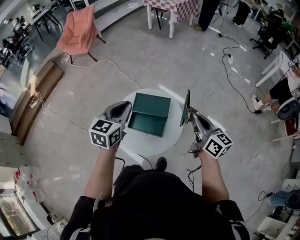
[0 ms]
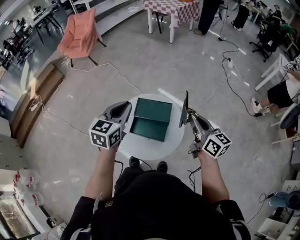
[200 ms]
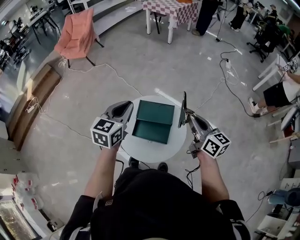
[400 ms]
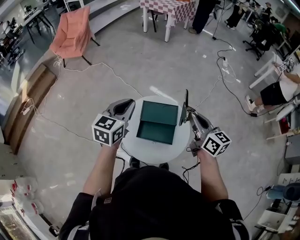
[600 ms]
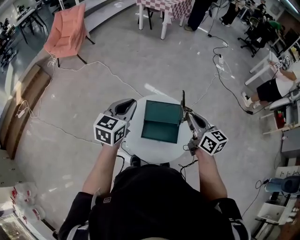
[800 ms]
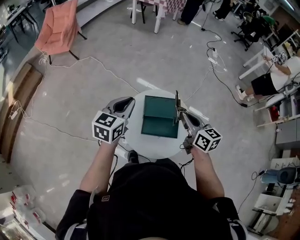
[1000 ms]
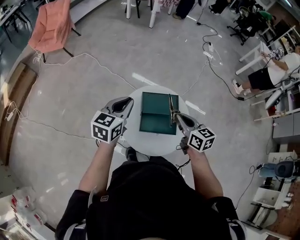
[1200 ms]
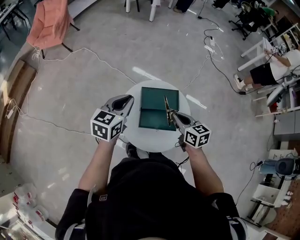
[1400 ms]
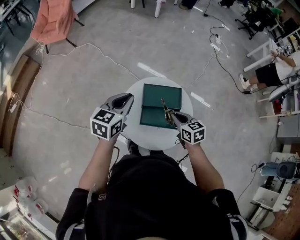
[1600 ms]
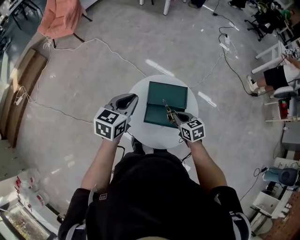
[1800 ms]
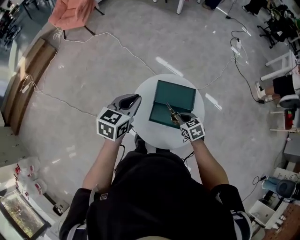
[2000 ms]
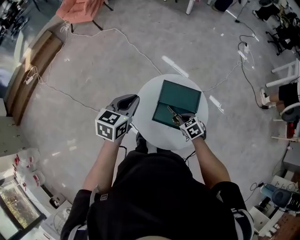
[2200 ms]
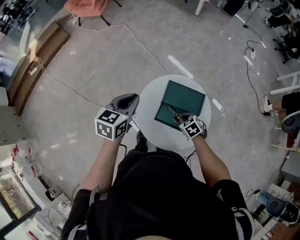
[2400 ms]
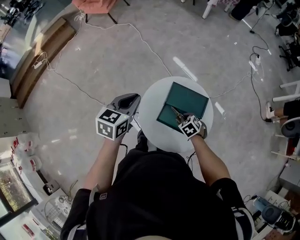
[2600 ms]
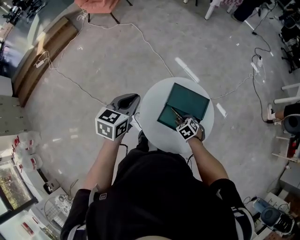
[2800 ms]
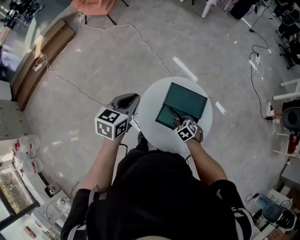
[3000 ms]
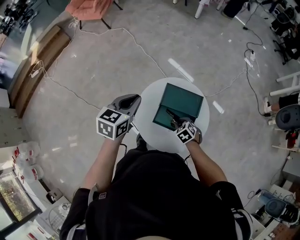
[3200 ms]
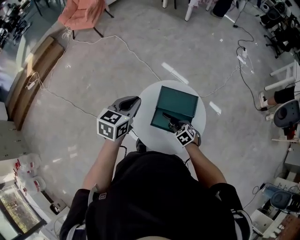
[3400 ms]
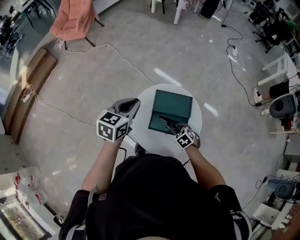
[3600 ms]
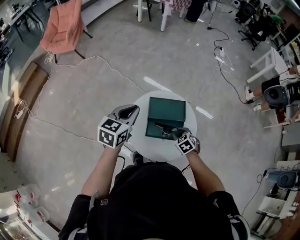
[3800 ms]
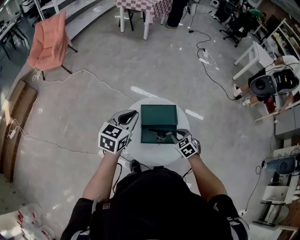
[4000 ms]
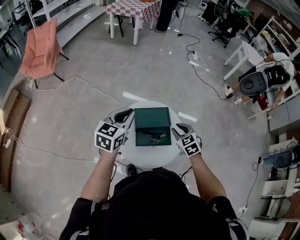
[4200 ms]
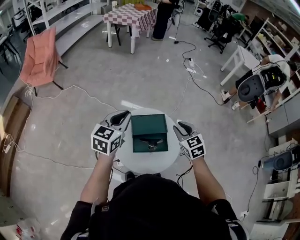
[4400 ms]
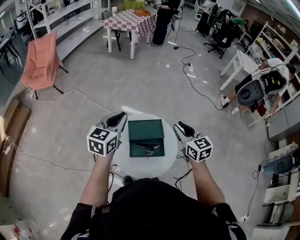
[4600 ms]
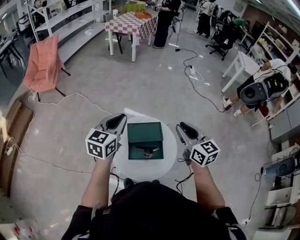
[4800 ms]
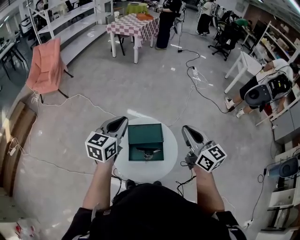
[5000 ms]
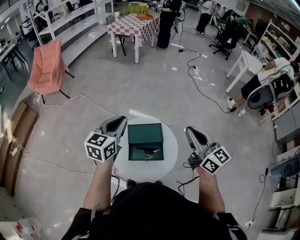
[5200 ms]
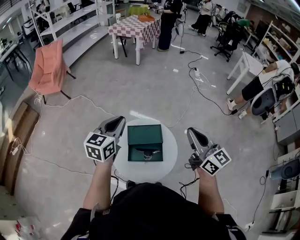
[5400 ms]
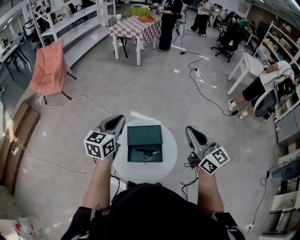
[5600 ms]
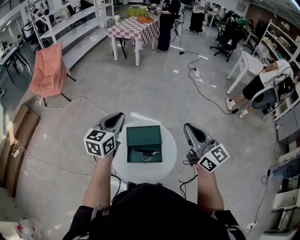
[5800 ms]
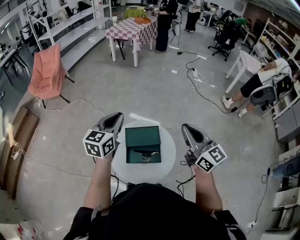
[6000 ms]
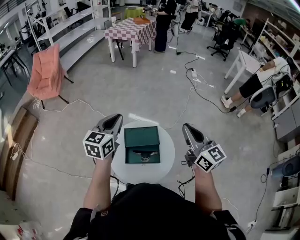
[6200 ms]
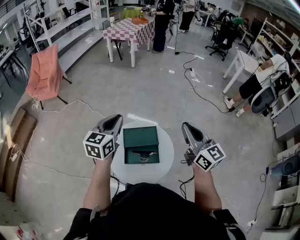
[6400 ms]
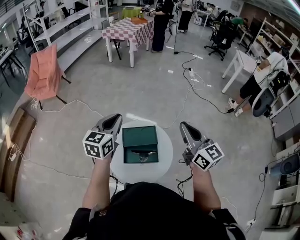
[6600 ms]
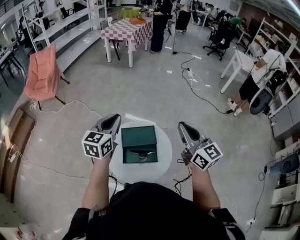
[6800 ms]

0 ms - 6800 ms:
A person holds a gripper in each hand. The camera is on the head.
0 ms - 1400 ms: The right gripper shifts roughly 20 cm to the left and downward, and swivels roughly 30 degrees. Meanwhile the left gripper heads to the left, forward and downward, covering some 15 cm.
1400 ms - 2800 ms: The right gripper shifts about 20 cm downward, and points its fingers about 40 degrees further downward. Meanwhile the left gripper moves to the left, some 10 cm, and changes its angle by about 20 degrees.
2800 ms - 4000 ms: The right gripper travels upward by about 10 cm, rotates roughly 30 degrees, and opens, while the left gripper shifts approximately 10 cm to the right, and turns by approximately 30 degrees.
4000 ms - 5400 ms: The left gripper moves upward, about 10 cm. The right gripper heads upward, covering approximately 35 cm, angles its fingers upward, by roughly 60 degrees, and closes up.
5400 ms - 6800 ms: The grippers stay close to where they were, moving slightly.

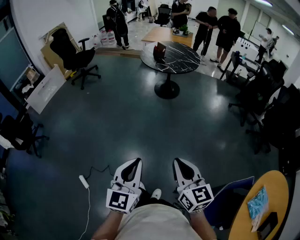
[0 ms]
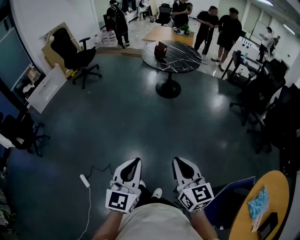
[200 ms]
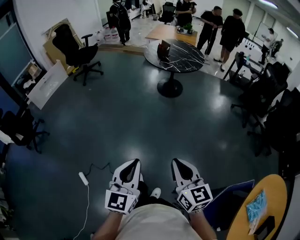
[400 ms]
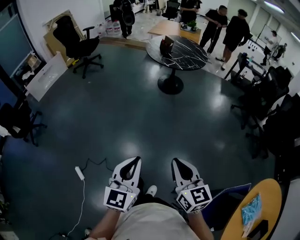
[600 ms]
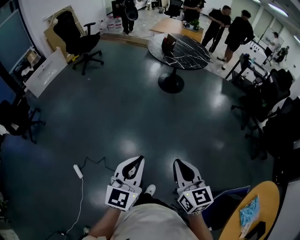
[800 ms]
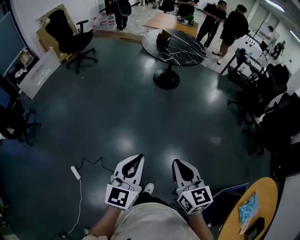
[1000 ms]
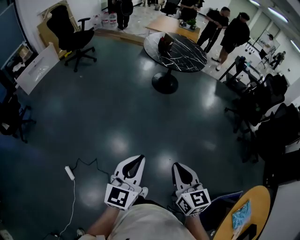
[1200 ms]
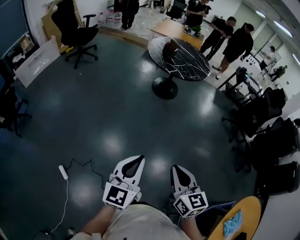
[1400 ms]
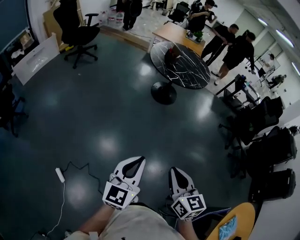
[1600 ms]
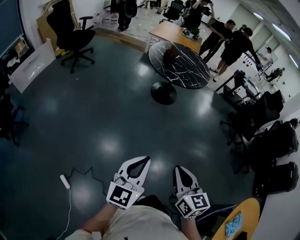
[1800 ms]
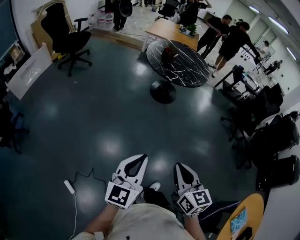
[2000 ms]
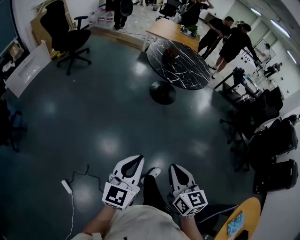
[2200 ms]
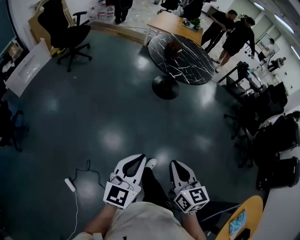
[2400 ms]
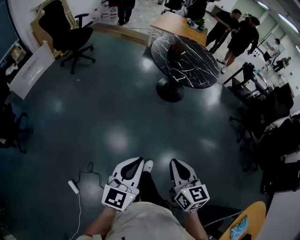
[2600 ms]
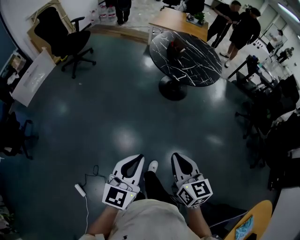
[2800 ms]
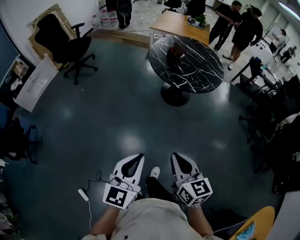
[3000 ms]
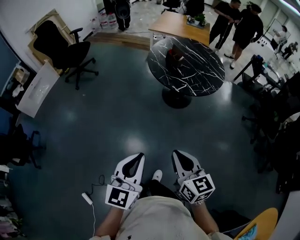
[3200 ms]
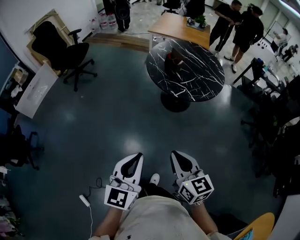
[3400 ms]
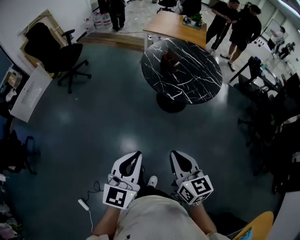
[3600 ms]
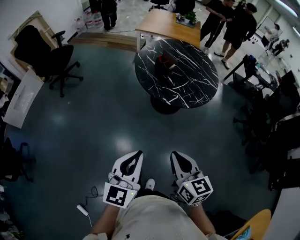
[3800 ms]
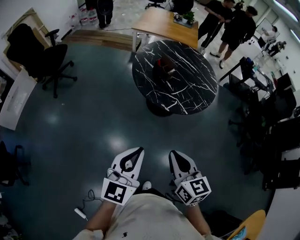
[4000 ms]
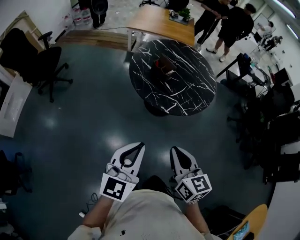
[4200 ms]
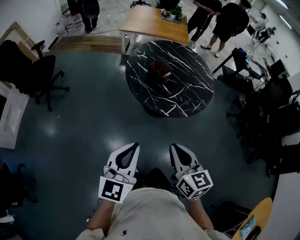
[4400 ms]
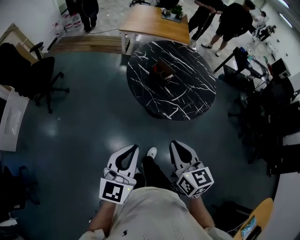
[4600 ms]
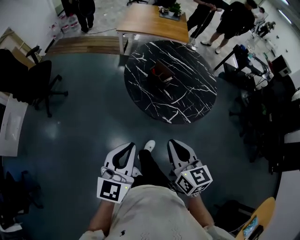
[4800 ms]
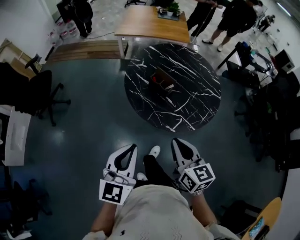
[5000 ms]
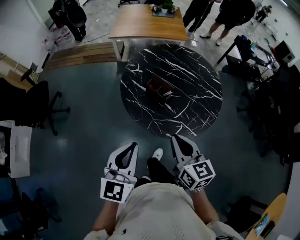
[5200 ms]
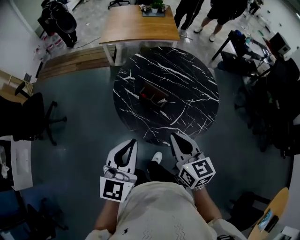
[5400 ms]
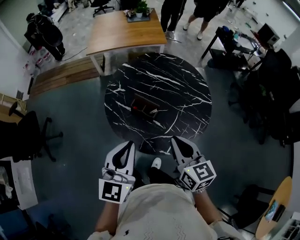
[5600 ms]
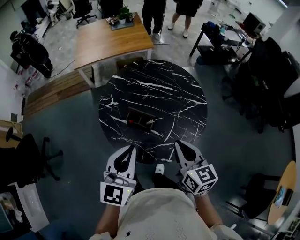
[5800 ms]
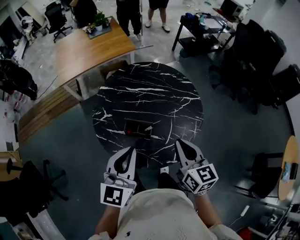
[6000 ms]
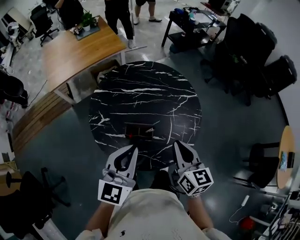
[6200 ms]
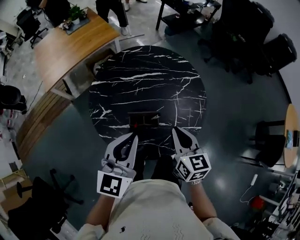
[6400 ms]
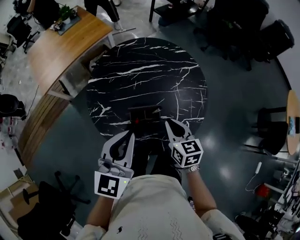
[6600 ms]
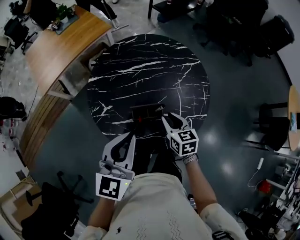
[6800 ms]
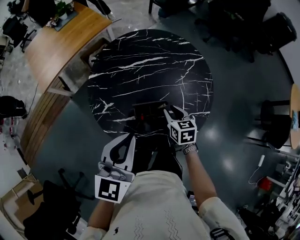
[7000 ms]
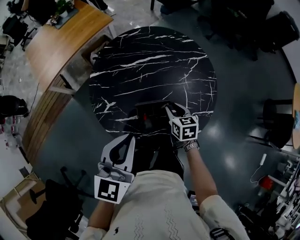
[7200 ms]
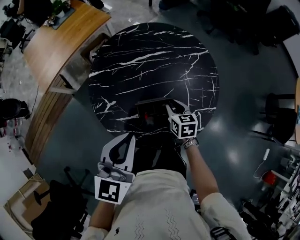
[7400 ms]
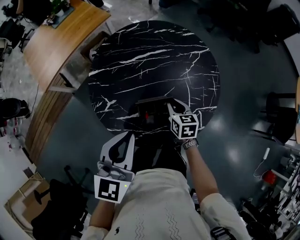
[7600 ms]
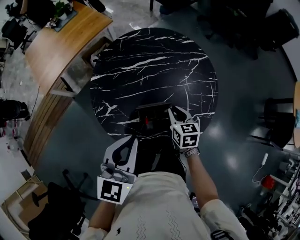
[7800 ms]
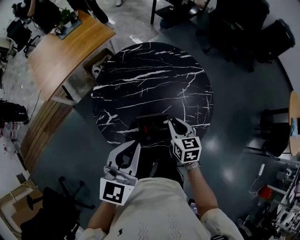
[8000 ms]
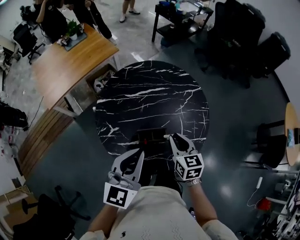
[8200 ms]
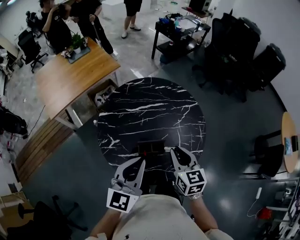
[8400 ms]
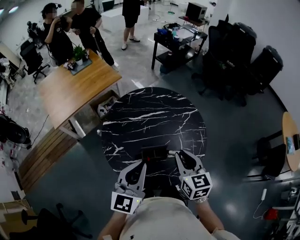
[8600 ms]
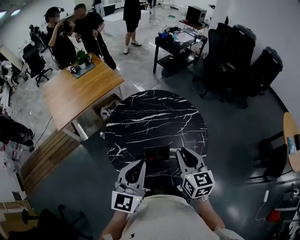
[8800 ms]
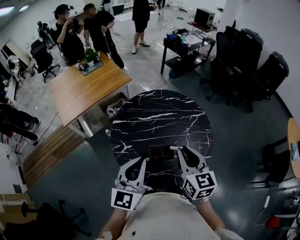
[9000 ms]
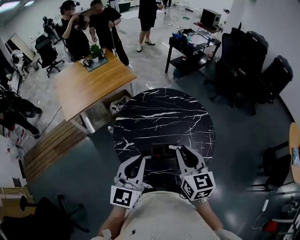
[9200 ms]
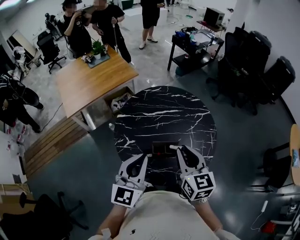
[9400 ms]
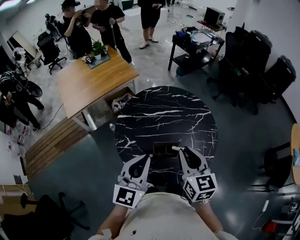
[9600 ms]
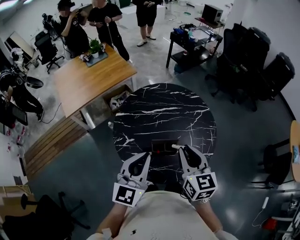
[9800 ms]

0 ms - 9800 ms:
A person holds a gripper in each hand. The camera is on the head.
0 ms - 1400 ms: Both grippers move forward, about 15 cm.
1400 ms - 2800 ms: The two grippers go approximately 25 cm forward.
2800 ms - 4200 ms: The grippers both shift forward by approximately 40 cm.
4200 ms - 5600 ms: The grippers both shift forward by roughly 40 cm.
5600 ms - 7000 ms: The left gripper ends up some 20 cm from where it was, and swivels some 40 degrees. Meanwhile the right gripper moves downward, about 25 cm, changes its angle by about 40 degrees, and opens up.
7000 ms - 8400 ms: The right gripper travels upward by about 20 cm.
8400 ms - 9800 ms: The right gripper travels upward by some 10 cm.

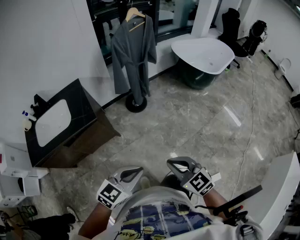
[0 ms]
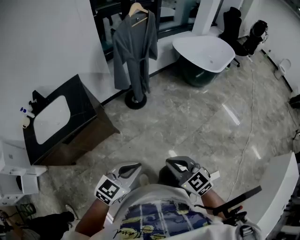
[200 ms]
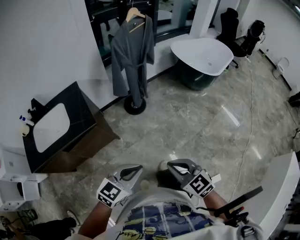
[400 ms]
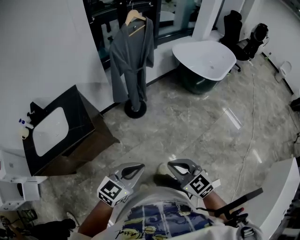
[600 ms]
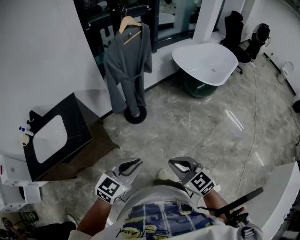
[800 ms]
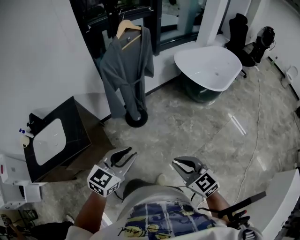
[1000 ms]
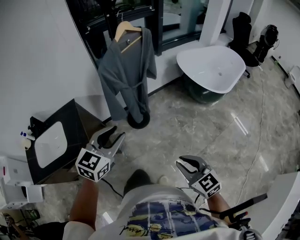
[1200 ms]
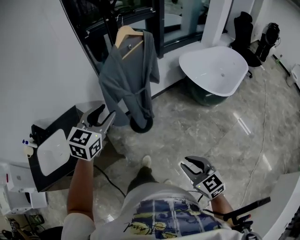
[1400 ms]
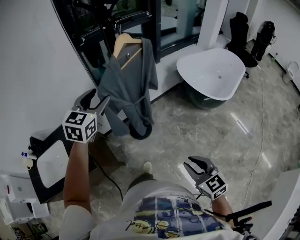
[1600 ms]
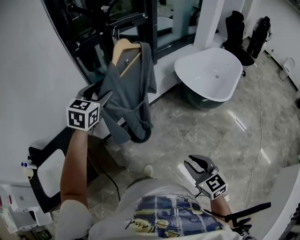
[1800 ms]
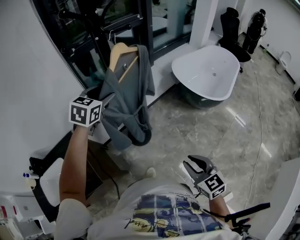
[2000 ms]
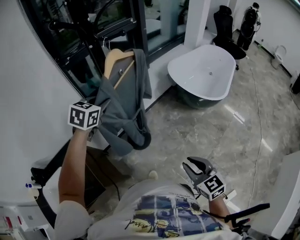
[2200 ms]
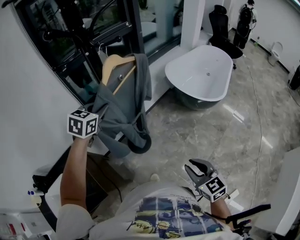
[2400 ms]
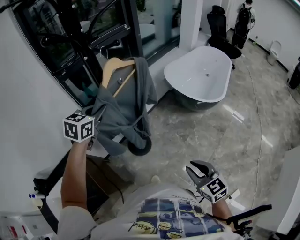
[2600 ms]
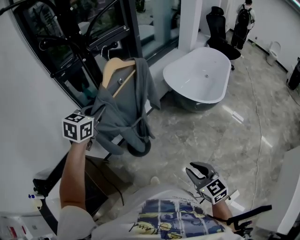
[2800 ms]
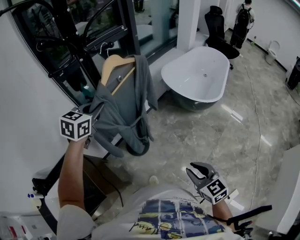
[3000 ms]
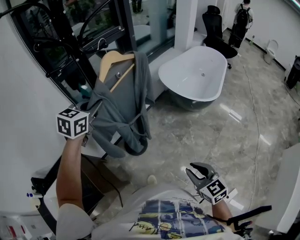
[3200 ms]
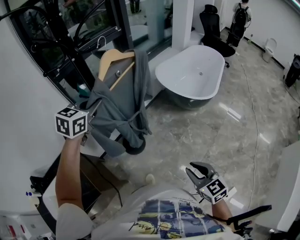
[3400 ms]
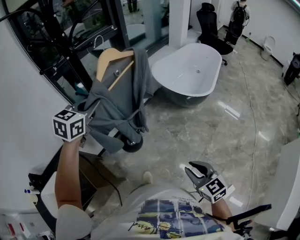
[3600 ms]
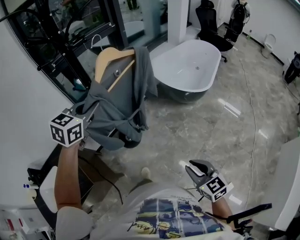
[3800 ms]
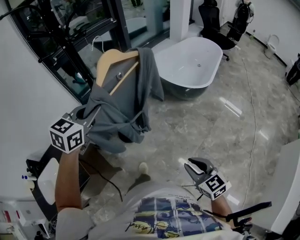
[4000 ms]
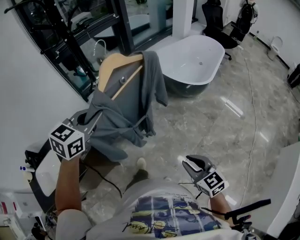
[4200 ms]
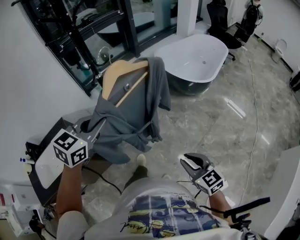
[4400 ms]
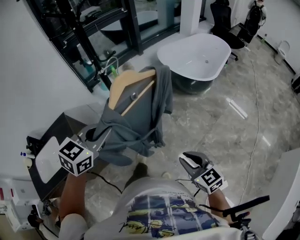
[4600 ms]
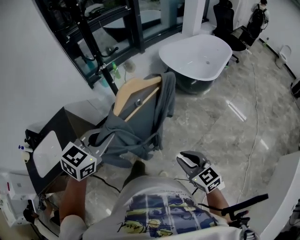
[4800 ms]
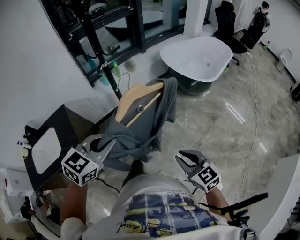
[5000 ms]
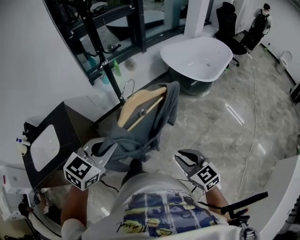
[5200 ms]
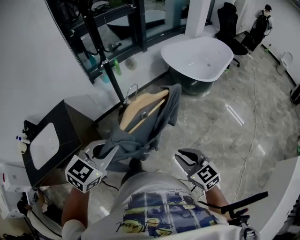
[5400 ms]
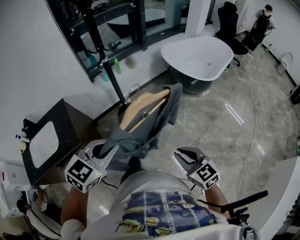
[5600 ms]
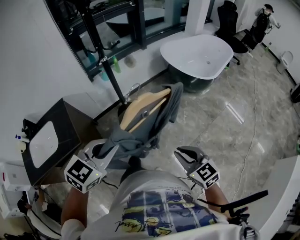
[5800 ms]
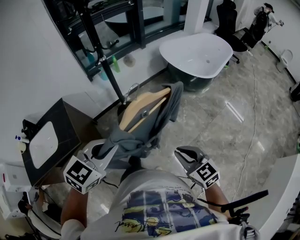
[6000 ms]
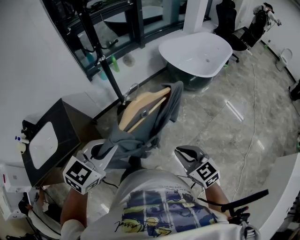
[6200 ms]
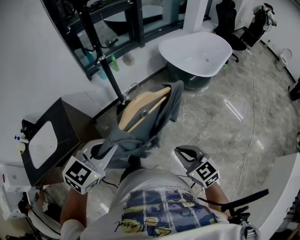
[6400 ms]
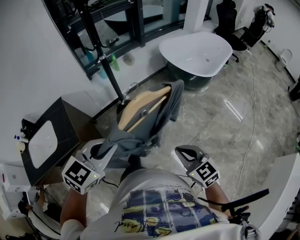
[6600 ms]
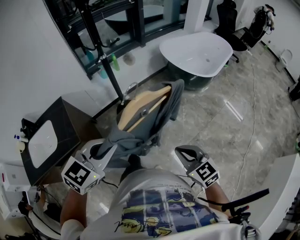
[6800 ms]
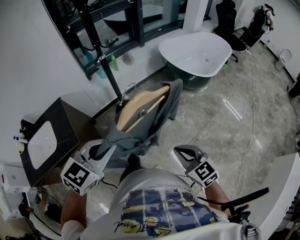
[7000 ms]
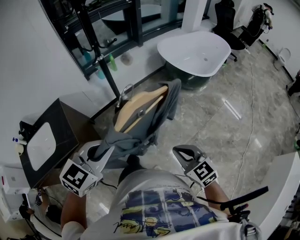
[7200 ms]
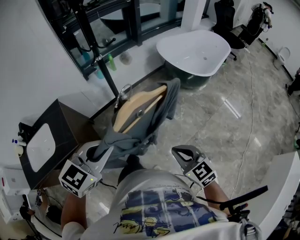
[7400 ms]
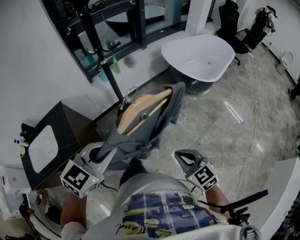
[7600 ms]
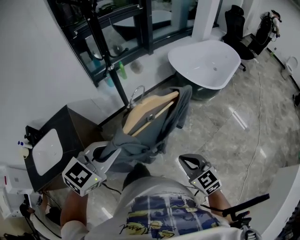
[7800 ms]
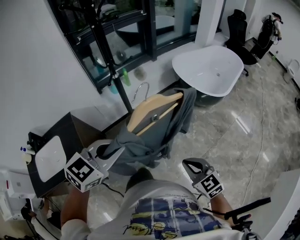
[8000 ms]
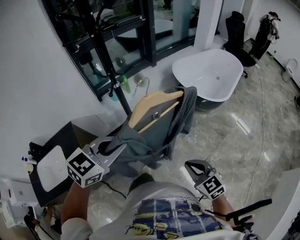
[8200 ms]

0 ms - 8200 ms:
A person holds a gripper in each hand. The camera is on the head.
0 ms - 1600 ms: The left gripper heads forward, covering approximately 60 cm, changes its angle by about 30 degrees, and opens its fingers. Meanwhile the right gripper goes some 30 cm forward, and opens.
1600 ms - 3200 ms: The left gripper travels forward by approximately 10 cm, turns by some 20 degrees, and closes up.
3200 ms - 5000 ms: The left gripper travels backward by approximately 40 cm, while the right gripper moves backward and to the right, roughly 15 cm.
5000 ms - 6600 ms: The grippers stay close to where they were, moving slightly.
6600 ms - 8200 ms: The grippers both shift forward by roughly 15 cm.
